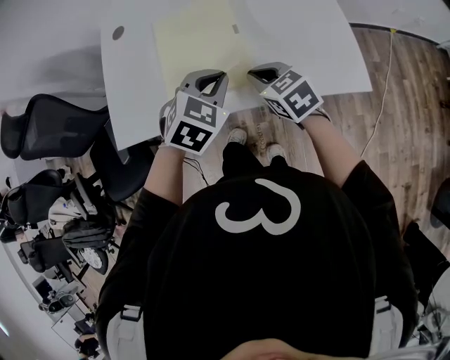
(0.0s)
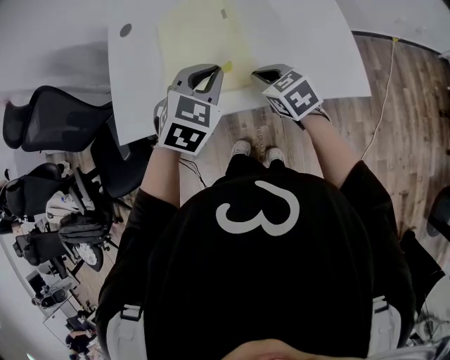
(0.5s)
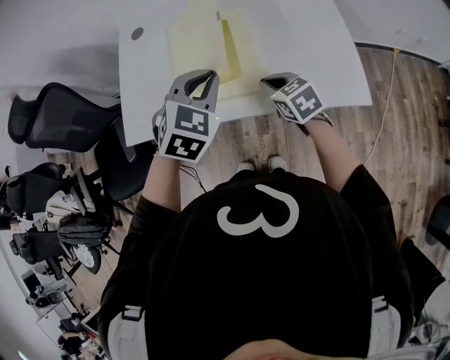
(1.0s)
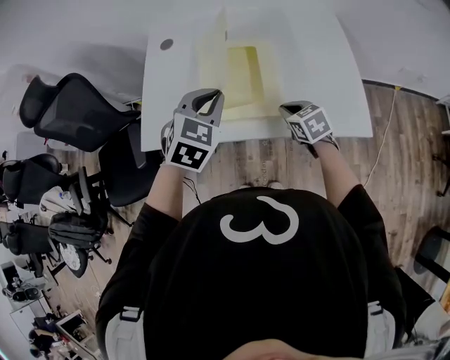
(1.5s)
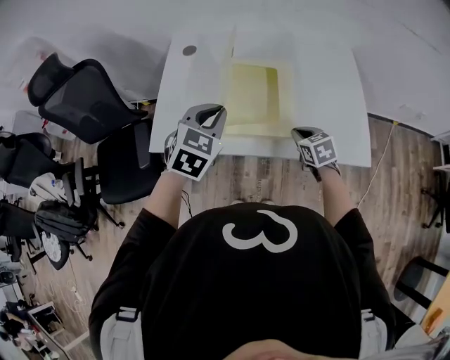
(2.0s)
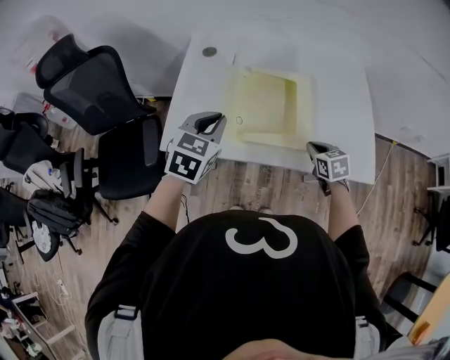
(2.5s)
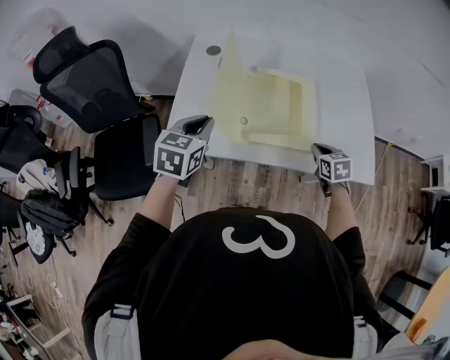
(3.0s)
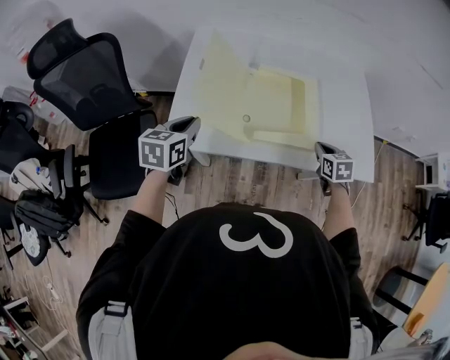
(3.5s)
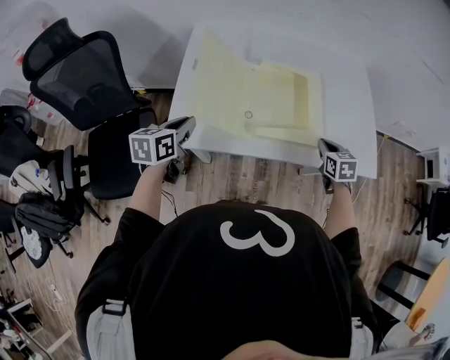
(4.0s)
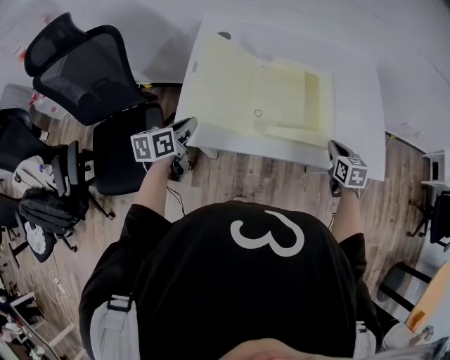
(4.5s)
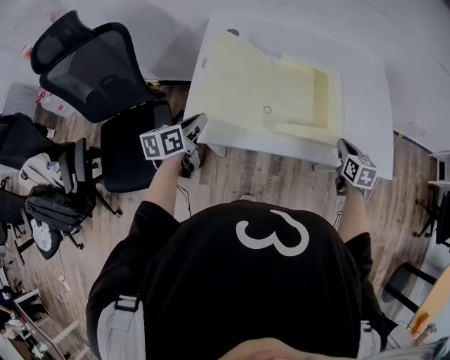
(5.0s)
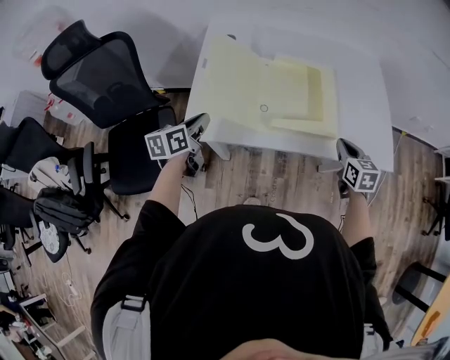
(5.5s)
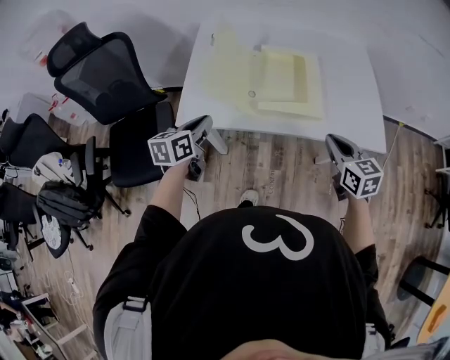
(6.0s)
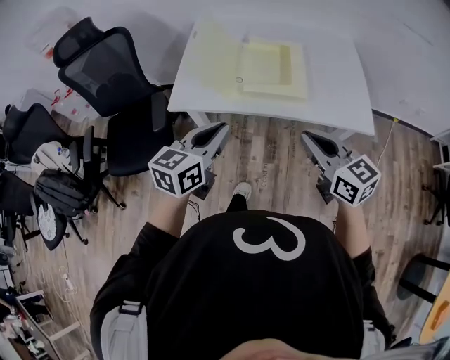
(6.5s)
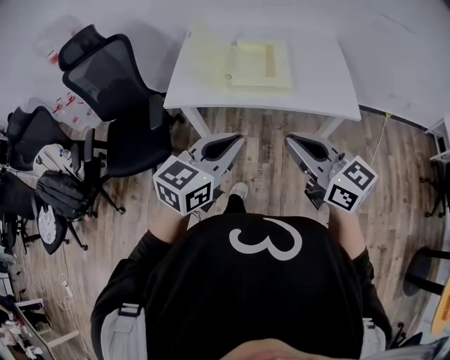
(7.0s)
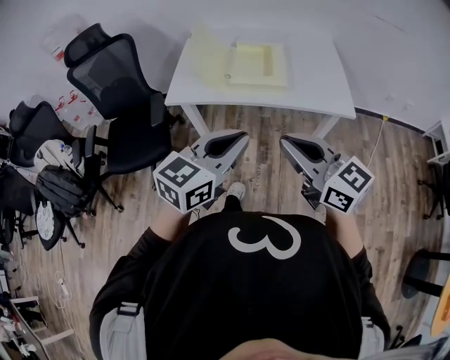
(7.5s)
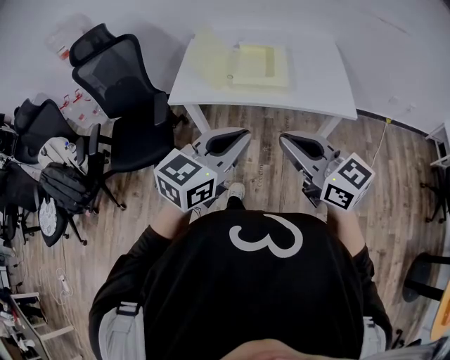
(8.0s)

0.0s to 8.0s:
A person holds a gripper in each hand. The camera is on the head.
0.0s to 2.0s: The left gripper travels to the left and upward by about 20 cm, and rotates roughly 20 degrees.
2.0s to 4.0s: The left gripper shifts about 25 cm to the left and downward, and twists approximately 40 degrees counterclockwise, seen from behind.
4.0s to 6.0s: The left gripper heads backward and to the right, covering some 10 cm; the right gripper goes about 15 cm backward and upward, and changes its angle by about 20 degrees.
6.0s to 8.0s: The right gripper heads backward and upward, covering about 30 cm, and swivels about 30 degrees. Meanwhile the left gripper goes about 40 cm backward, to the right and upward, and swivels approximately 40 degrees.

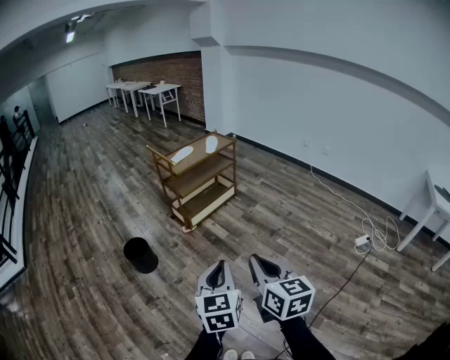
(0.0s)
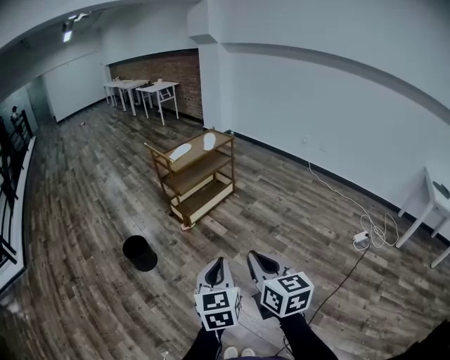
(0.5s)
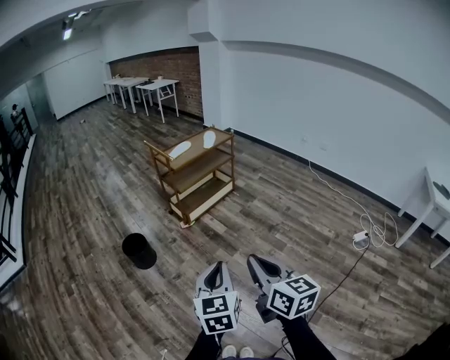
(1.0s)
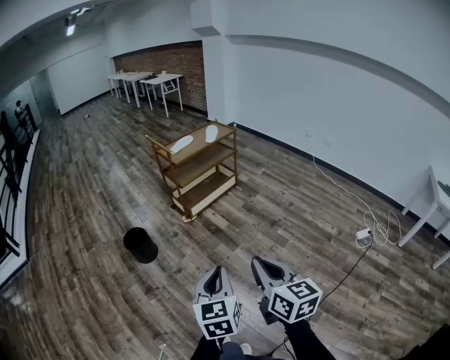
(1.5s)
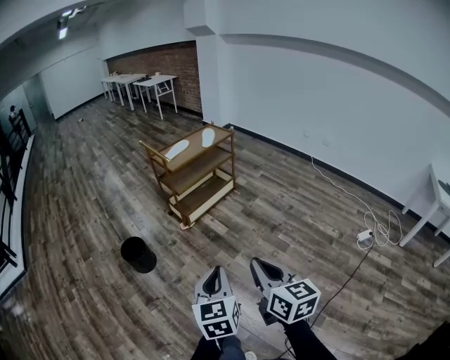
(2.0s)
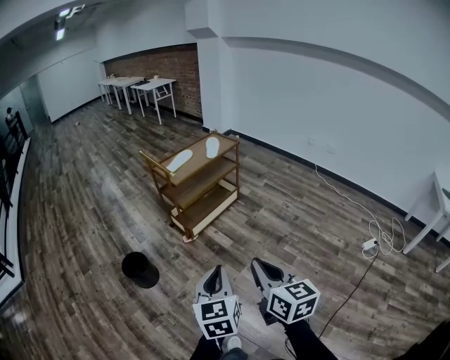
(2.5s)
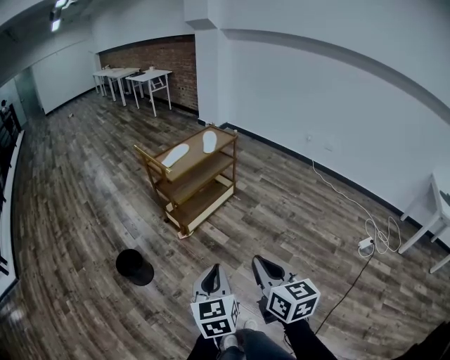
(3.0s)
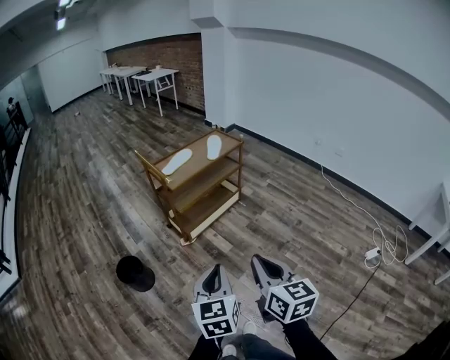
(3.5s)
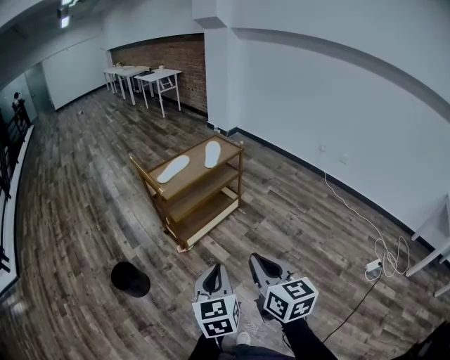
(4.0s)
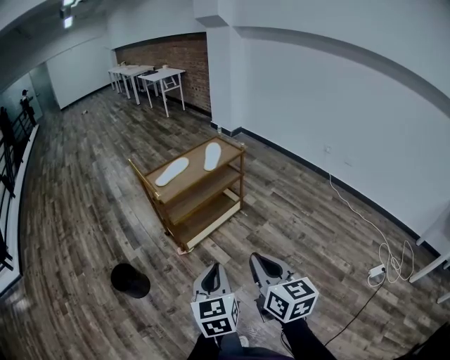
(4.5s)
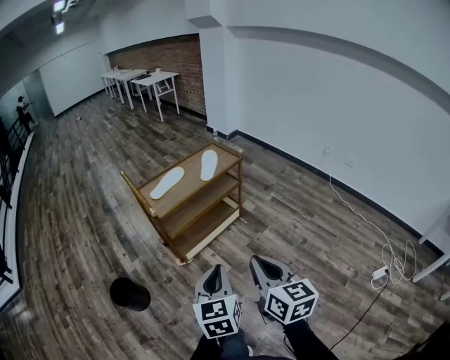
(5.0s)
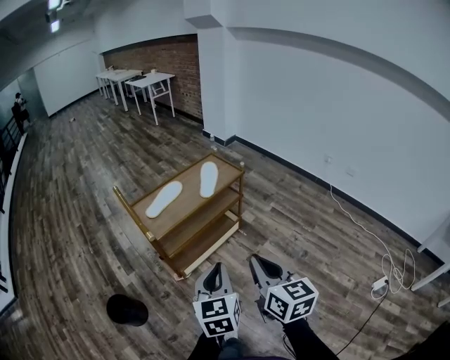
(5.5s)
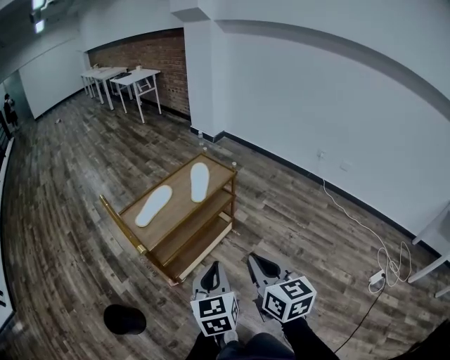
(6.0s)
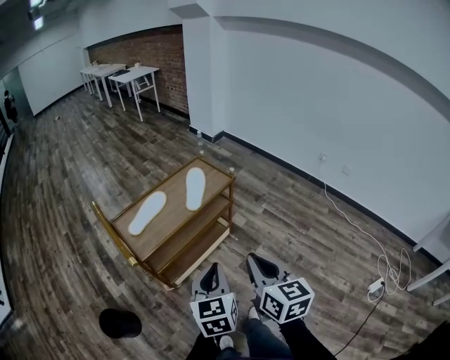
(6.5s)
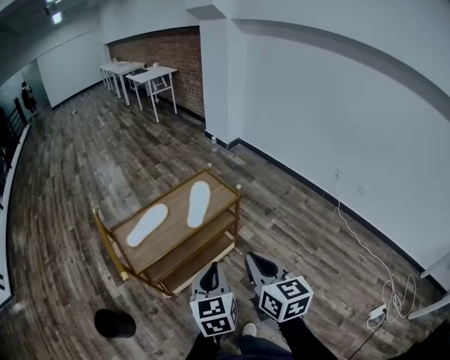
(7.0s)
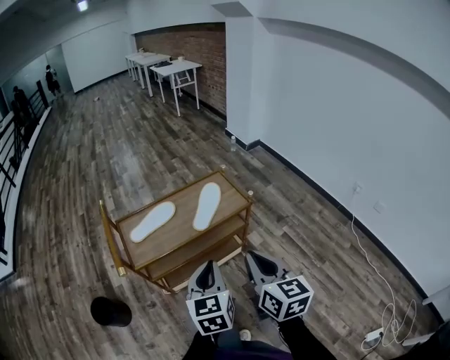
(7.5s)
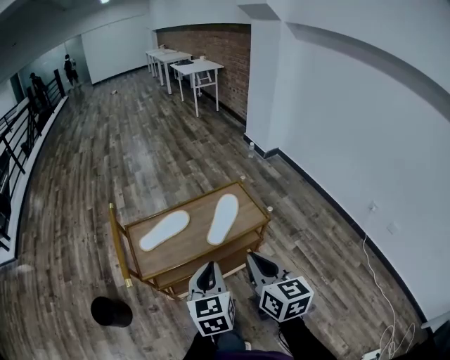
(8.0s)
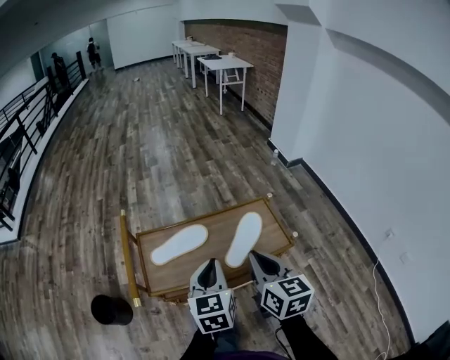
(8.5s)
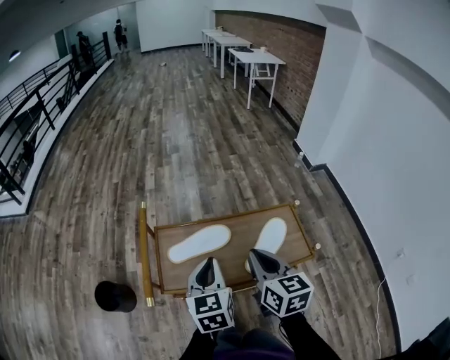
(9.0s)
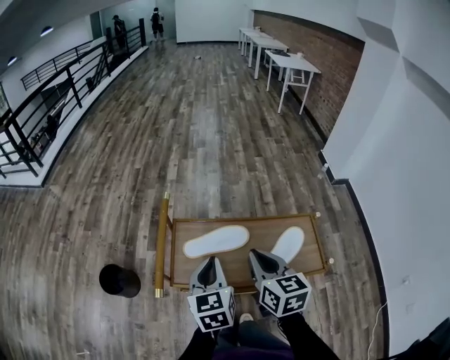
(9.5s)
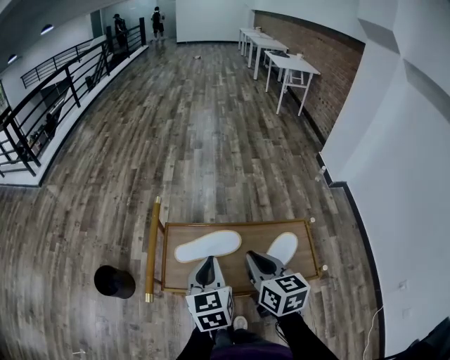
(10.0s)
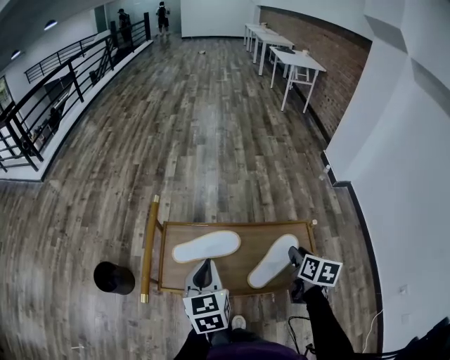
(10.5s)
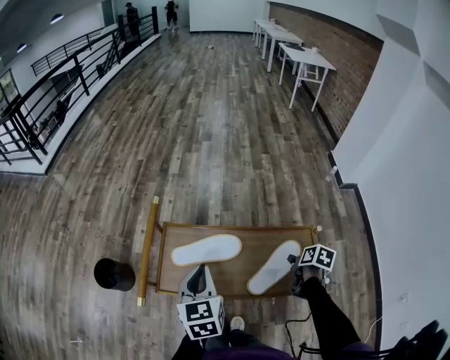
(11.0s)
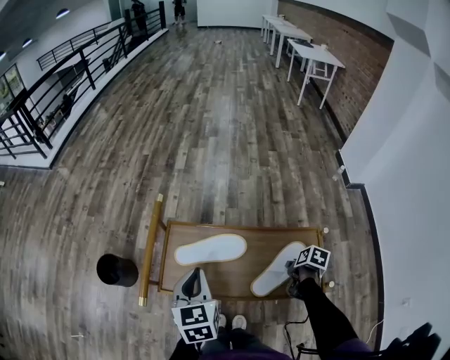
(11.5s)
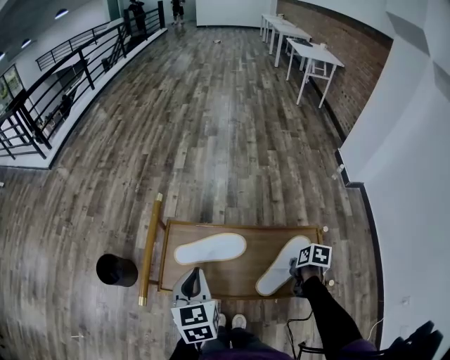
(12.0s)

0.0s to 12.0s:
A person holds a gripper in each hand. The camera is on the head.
0.0s to 2.0s: The right gripper ends up approximately 5 cm from where it was.
2.0s to 4.0s: The two grippers go approximately 30 cm forward.
4.0s to 6.0s: The grippers both shift forward by approximately 30 cm.
6.0s to 8.0s: The grippers both shift forward by approximately 25 cm. The left gripper swivels some 20 degrees. Meanwhile the right gripper changes its angle by roughly 20 degrees.
8.0s to 10.0s: The left gripper shifts by approximately 25 cm, and swivels some 30 degrees. Meanwhile the right gripper moves roughly 25 cm, and turns by some 30 degrees.
10.0s to 12.0s: The right gripper goes some 30 cm downward and to the right, tilts its fingers some 50 degrees downward, and opens, then closes once more.

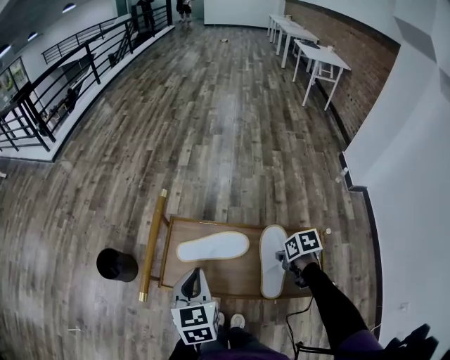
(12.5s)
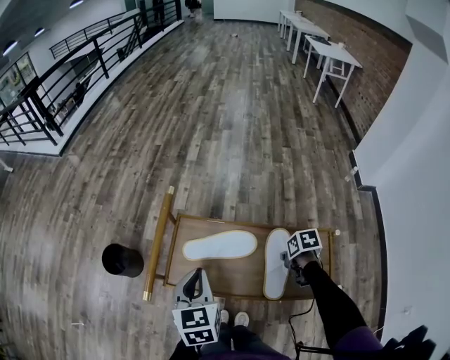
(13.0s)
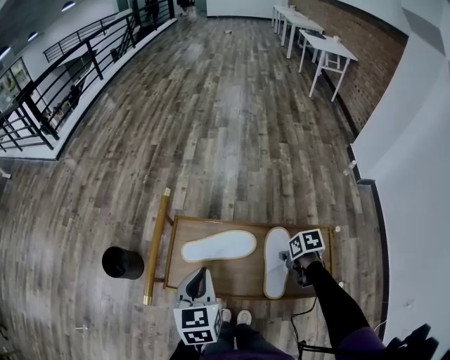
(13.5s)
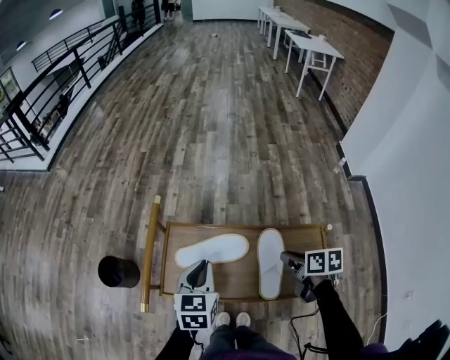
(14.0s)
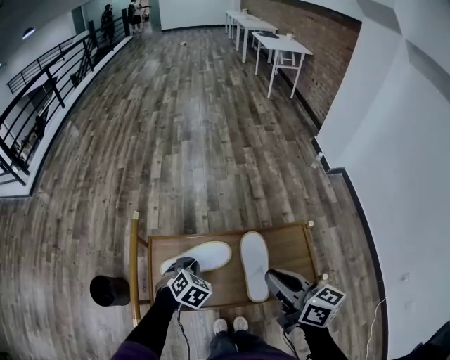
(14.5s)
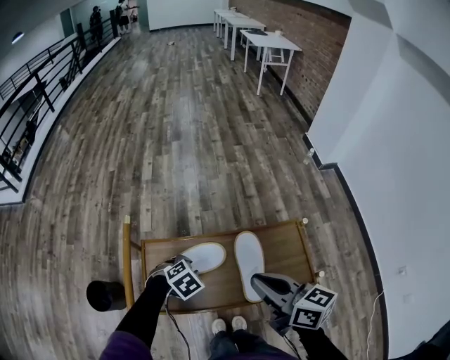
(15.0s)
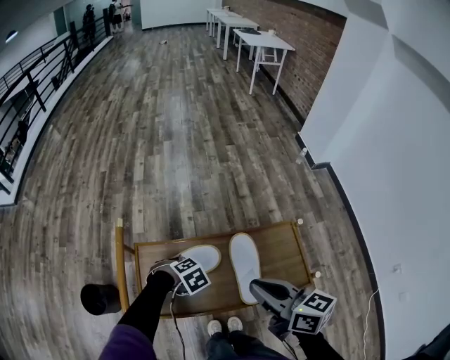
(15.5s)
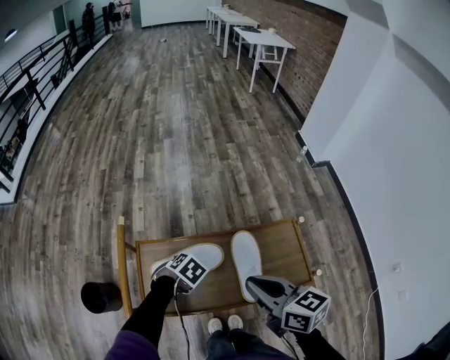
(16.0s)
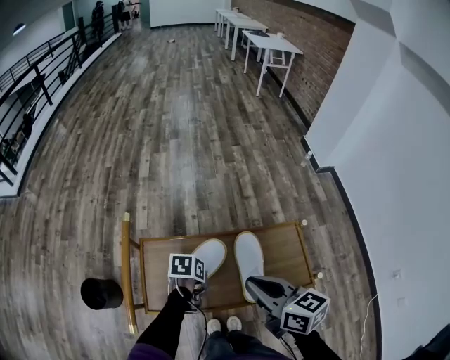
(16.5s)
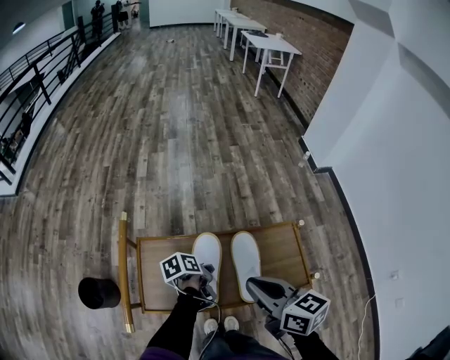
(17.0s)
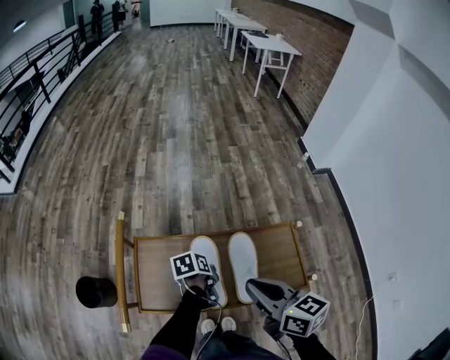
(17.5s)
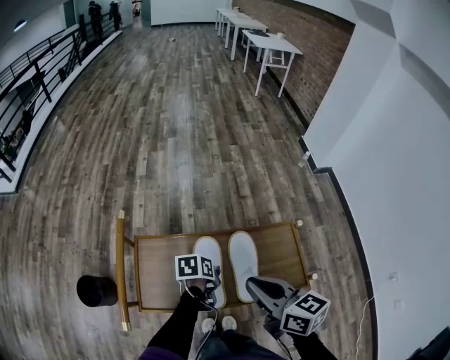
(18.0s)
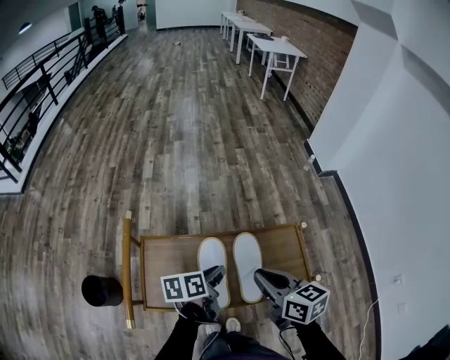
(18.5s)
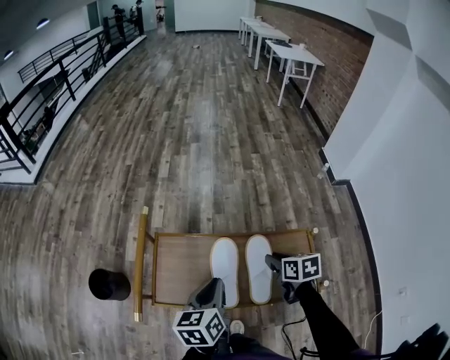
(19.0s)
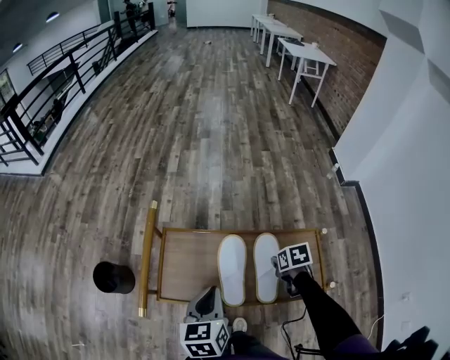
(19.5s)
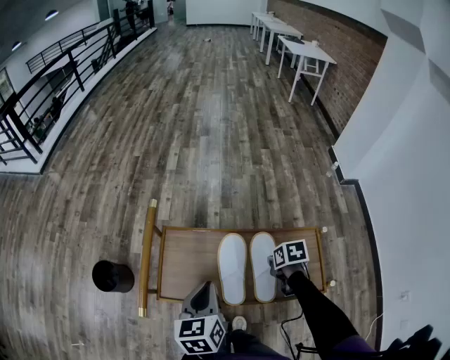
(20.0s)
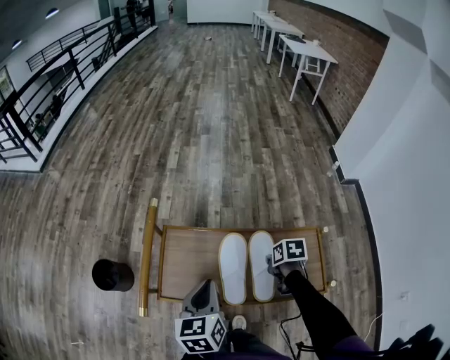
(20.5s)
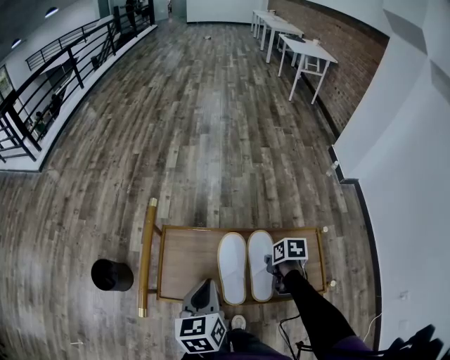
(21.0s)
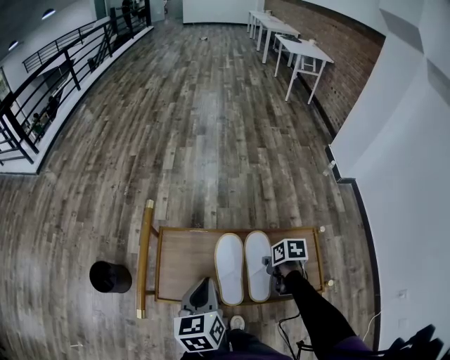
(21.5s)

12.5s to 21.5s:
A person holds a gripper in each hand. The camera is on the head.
12.5s to 14.5s: The right gripper shifts roughly 20 cm upward, and tilts its fingers approximately 60 degrees upward, while the left gripper goes about 15 cm downward, and rotates around the line of its fingers by approximately 50 degrees, clockwise from behind.
14.5s to 17.0s: The left gripper changes place by roughly 5 cm, rotates around the line of its fingers by some 80 degrees, counterclockwise from behind, and opens, then closes once more.
17.0s to 19.5s: The right gripper shifts approximately 25 cm downward, forward and to the right, and angles its fingers downward, by about 50 degrees; the left gripper shifts roughly 20 cm upward and backward, and turns by about 50 degrees.
19.5s to 21.5s: The grippers make only small movements.
